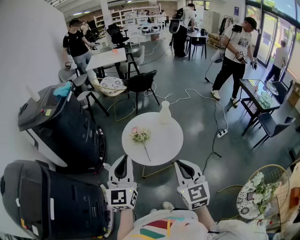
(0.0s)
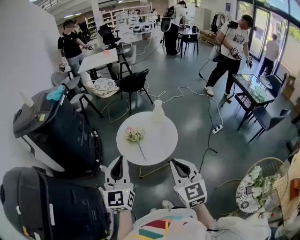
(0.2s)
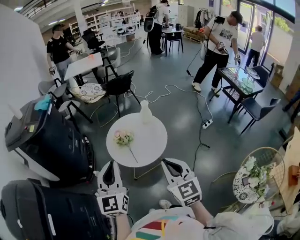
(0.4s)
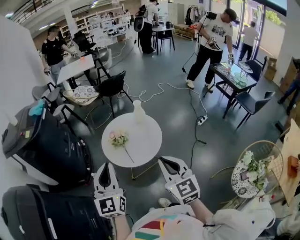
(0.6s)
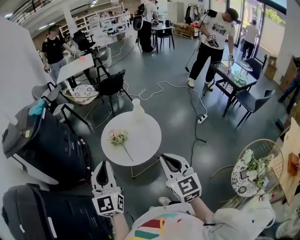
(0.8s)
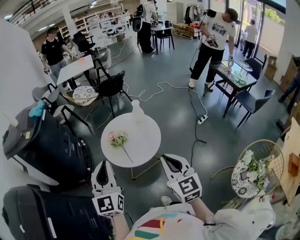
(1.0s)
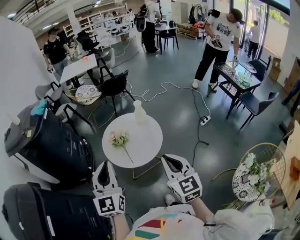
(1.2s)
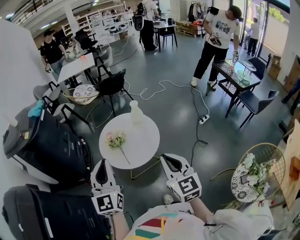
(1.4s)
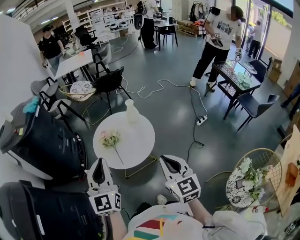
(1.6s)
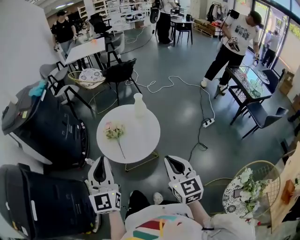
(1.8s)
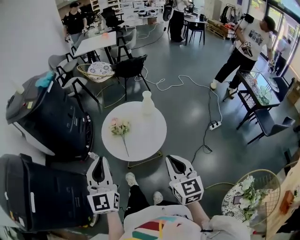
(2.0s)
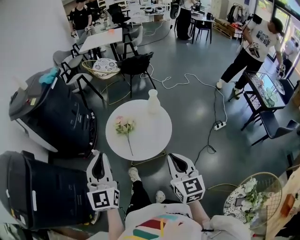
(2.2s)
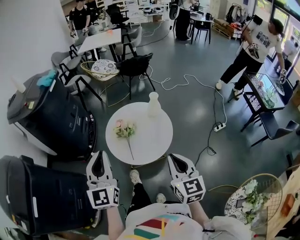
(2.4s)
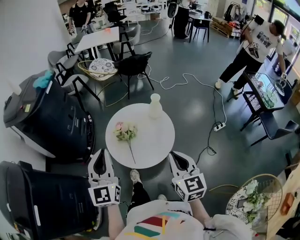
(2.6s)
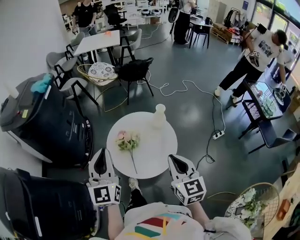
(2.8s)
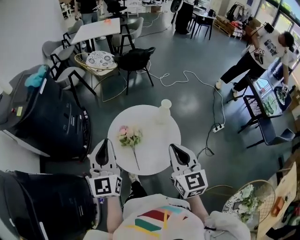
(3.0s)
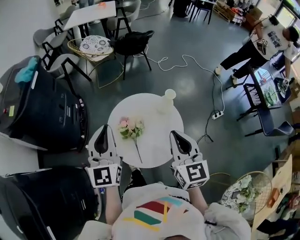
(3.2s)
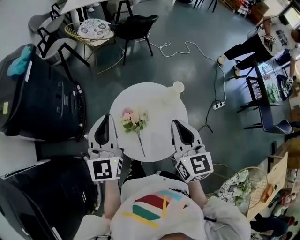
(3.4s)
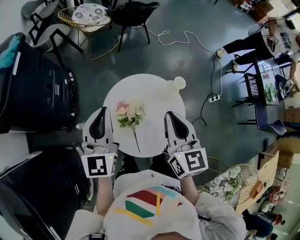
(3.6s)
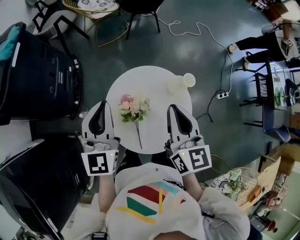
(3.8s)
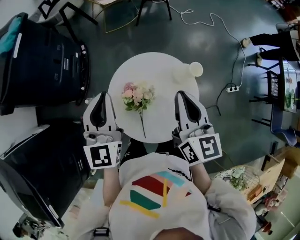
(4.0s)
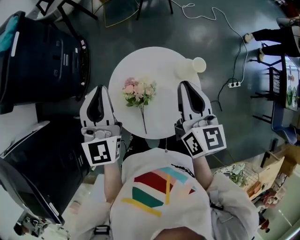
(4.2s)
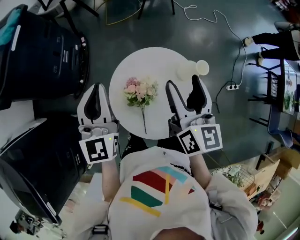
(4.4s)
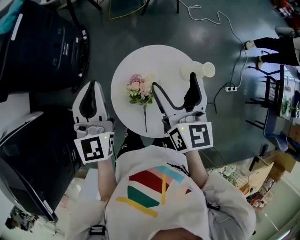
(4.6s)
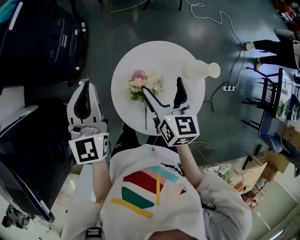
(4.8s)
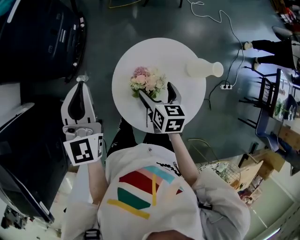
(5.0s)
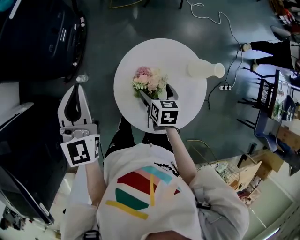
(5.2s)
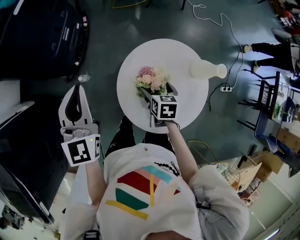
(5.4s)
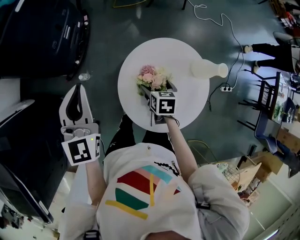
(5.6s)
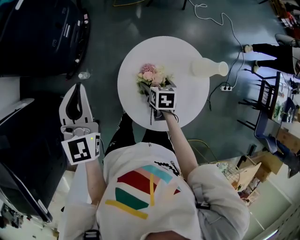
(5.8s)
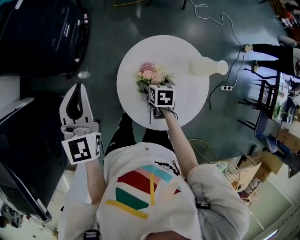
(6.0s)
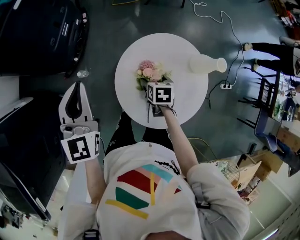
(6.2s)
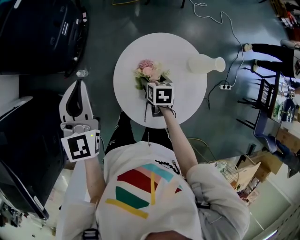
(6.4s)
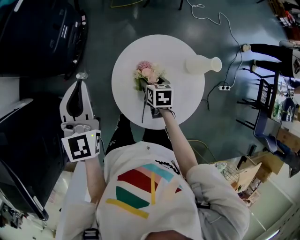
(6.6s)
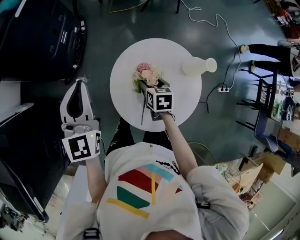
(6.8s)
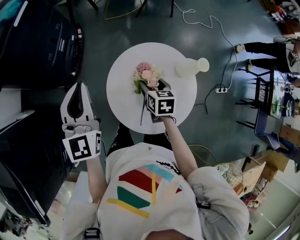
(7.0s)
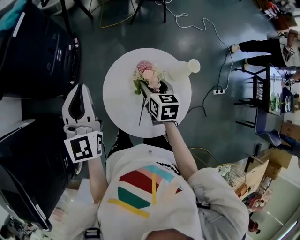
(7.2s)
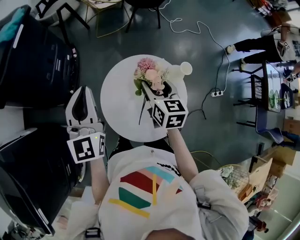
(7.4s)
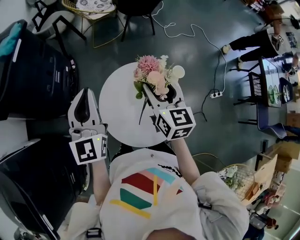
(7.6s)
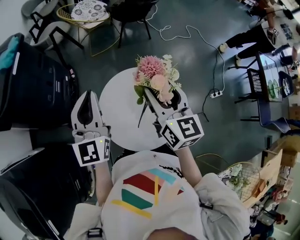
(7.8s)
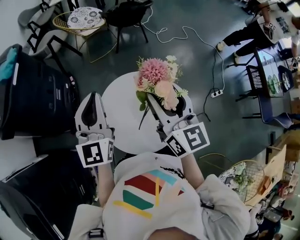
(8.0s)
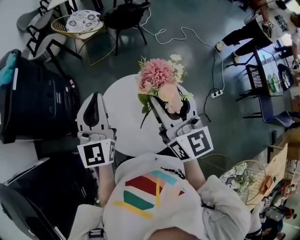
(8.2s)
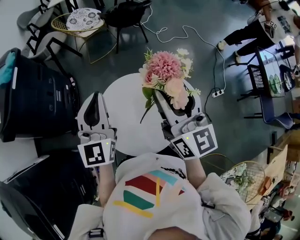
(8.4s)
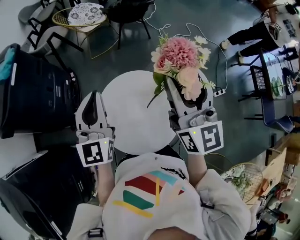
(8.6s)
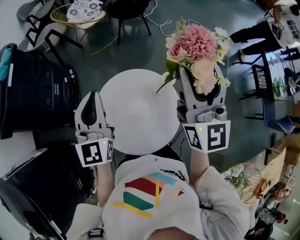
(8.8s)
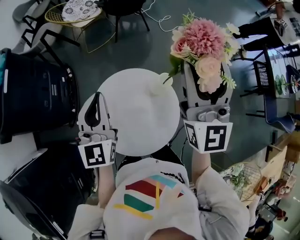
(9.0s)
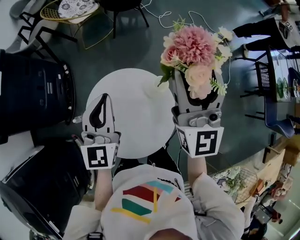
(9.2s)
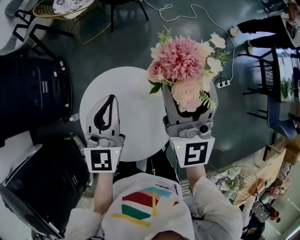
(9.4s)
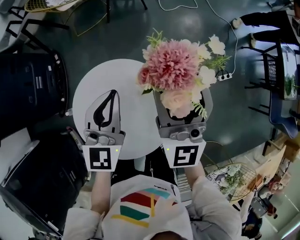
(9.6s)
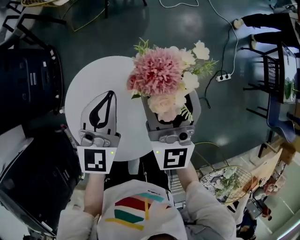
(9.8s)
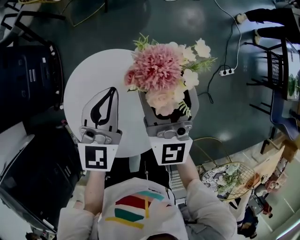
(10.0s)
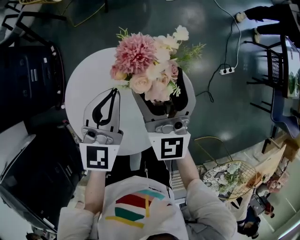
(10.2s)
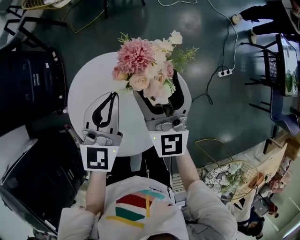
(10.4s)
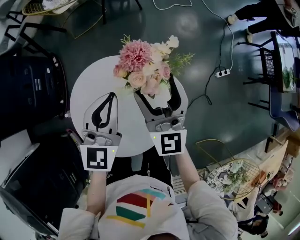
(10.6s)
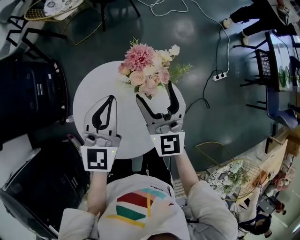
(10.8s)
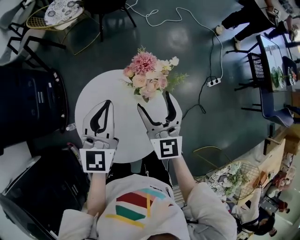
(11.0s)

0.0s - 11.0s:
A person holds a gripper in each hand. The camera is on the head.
0.0s - 1.6s: The grippers both shift to the right by approximately 10 cm.
1.6s - 3.2s: Both grippers move forward, roughly 30 cm.
3.2s - 4.8s: The left gripper goes roughly 15 cm to the left, downward and forward. Meanwhile the right gripper is displaced forward, downward and to the left by roughly 25 cm, turns by approximately 20 degrees, and opens its fingers.
4.8s - 6.2s: The right gripper heads downward, covering approximately 20 cm, and tips its fingers downward by approximately 40 degrees. Meanwhile the left gripper goes approximately 5 cm to the left.
6.2s - 7.8s: The left gripper travels to the right and upward by about 20 cm. The right gripper is displaced upward by roughly 35 cm, and tilts its fingers about 60 degrees upward.
7.8s - 9.4s: The right gripper moves to the right and forward, approximately 15 cm, and swivels roughly 30 degrees. The left gripper goes some 20 cm to the right, downward and forward.
9.4s - 11.0s: The right gripper shifts approximately 15 cm downward and backward, and rotates some 20 degrees.

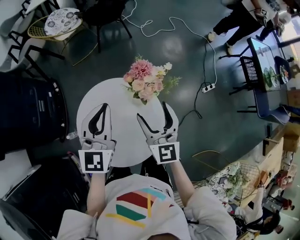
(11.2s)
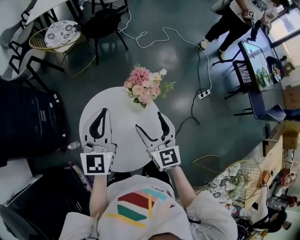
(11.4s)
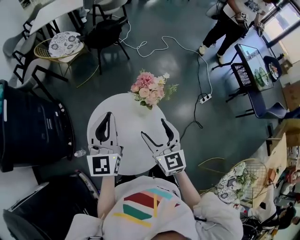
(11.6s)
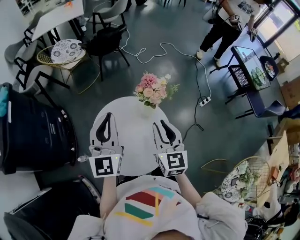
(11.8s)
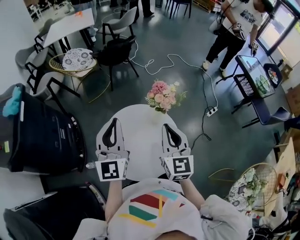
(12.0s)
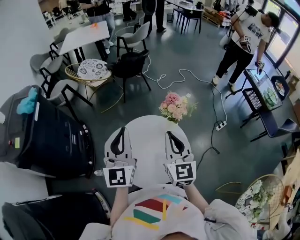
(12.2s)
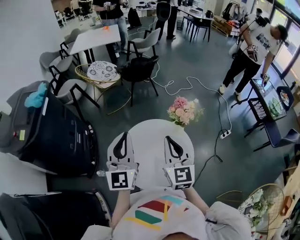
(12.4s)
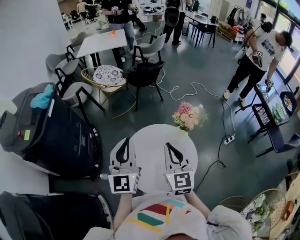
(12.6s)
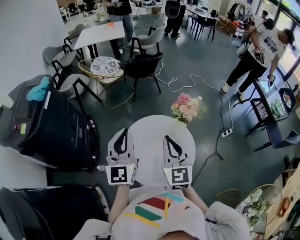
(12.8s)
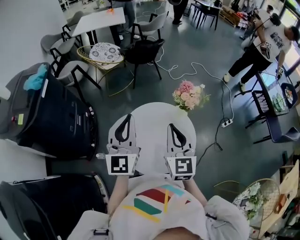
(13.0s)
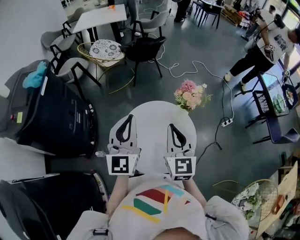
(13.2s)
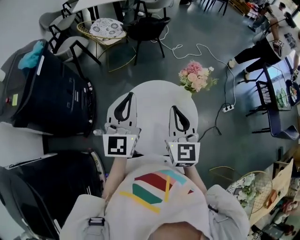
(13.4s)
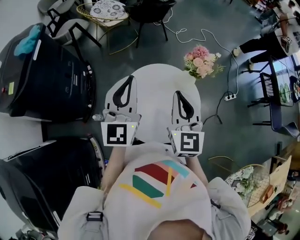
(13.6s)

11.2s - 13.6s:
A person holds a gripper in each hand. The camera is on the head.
11.2s - 12.4s: The left gripper is displaced to the left, backward and upward by roughly 15 cm; the right gripper heads to the left, upward and backward, covering about 15 cm, and closes.
12.4s - 13.6s: The grippers move only a little.

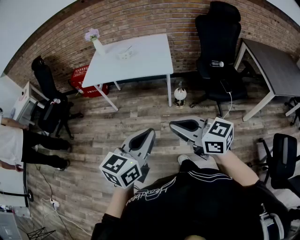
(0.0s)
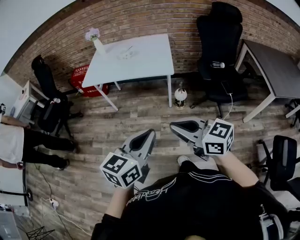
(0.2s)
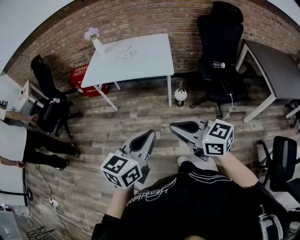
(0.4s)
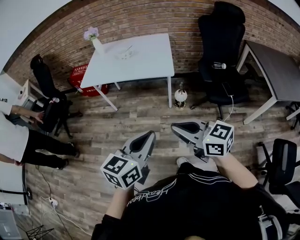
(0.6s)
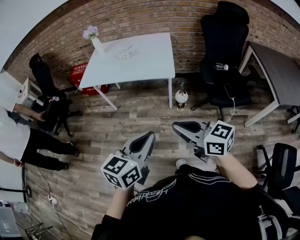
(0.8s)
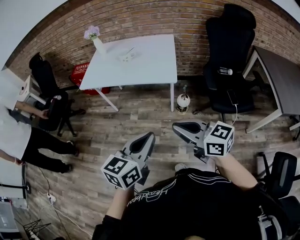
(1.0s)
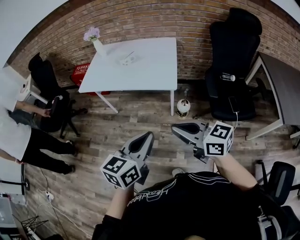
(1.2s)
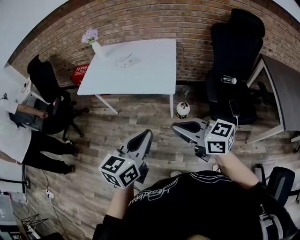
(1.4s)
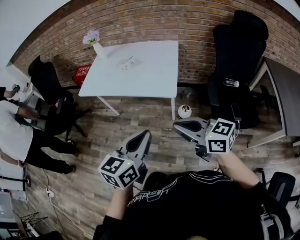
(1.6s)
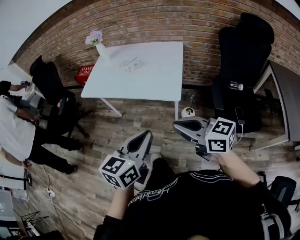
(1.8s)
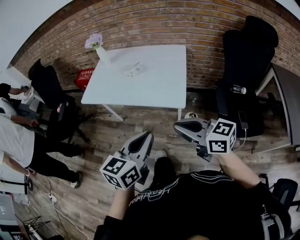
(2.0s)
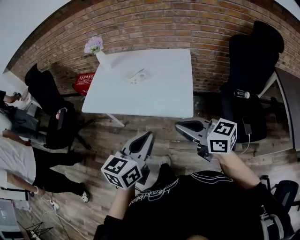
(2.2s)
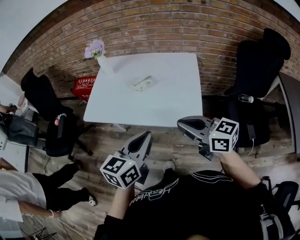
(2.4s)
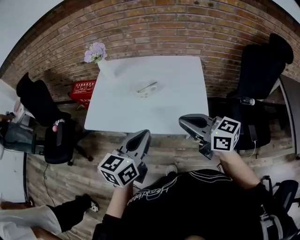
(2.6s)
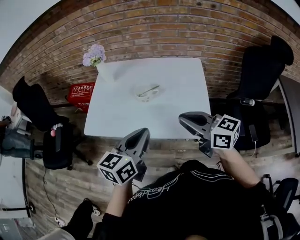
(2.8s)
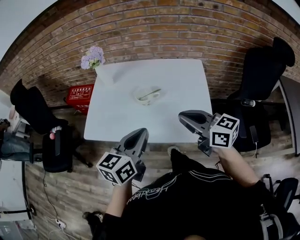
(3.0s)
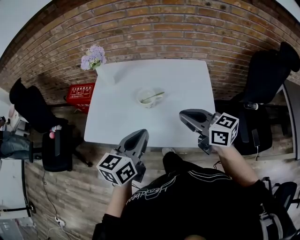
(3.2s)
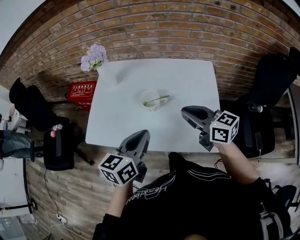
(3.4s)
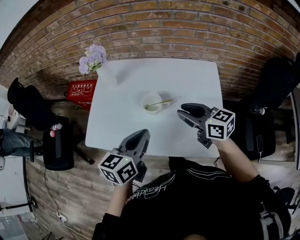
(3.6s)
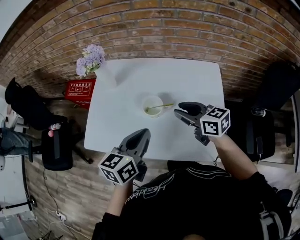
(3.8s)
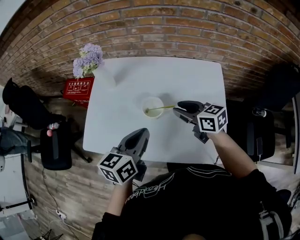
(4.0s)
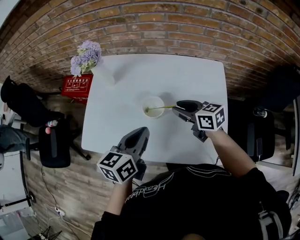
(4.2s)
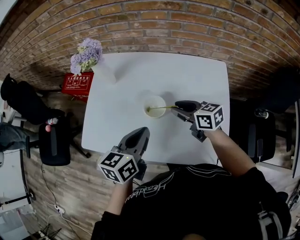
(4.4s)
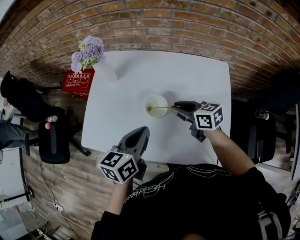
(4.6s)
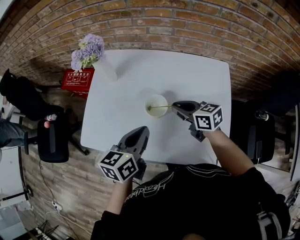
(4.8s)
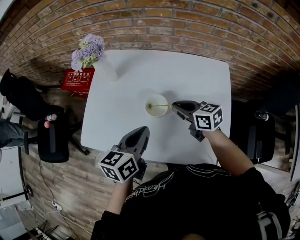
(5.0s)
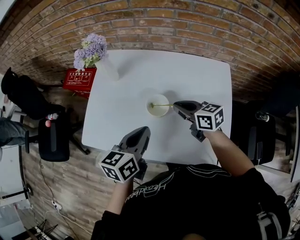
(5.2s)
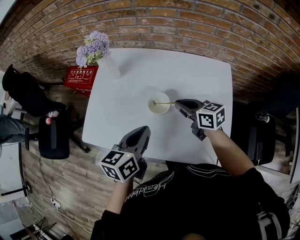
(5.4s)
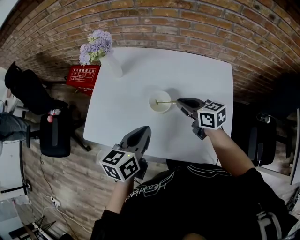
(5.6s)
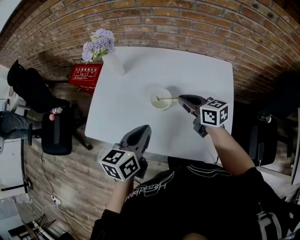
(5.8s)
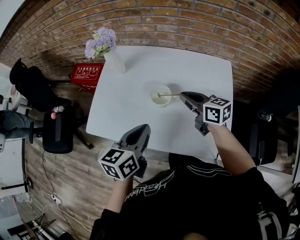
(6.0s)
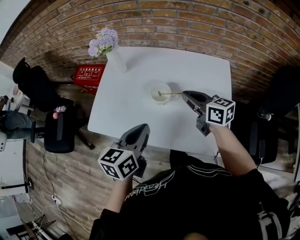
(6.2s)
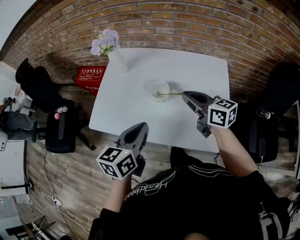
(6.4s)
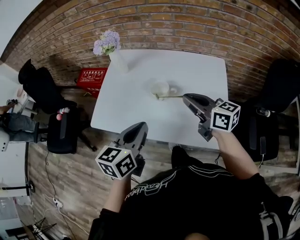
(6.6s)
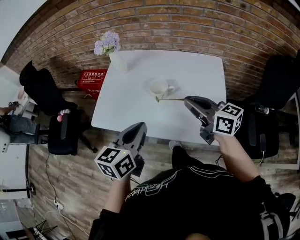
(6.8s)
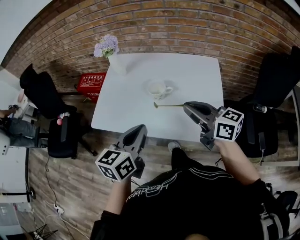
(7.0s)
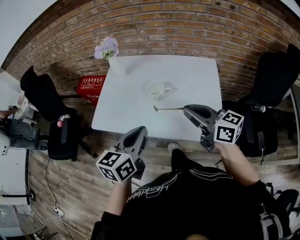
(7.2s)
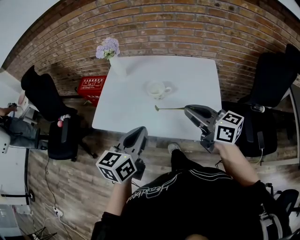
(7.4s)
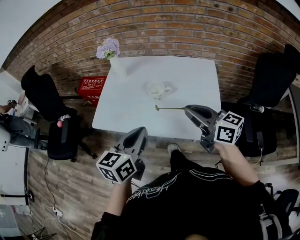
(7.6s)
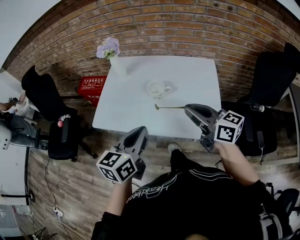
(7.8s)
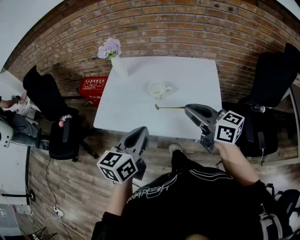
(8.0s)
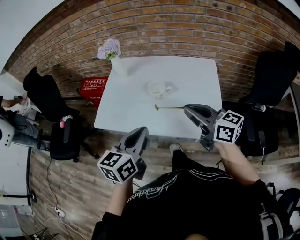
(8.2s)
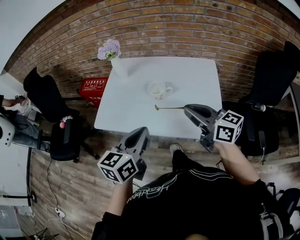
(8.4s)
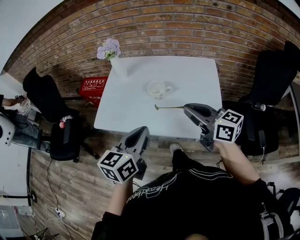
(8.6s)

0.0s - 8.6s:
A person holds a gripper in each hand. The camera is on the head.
0.0s - 1.4s: Both grippers move forward and to the right, about 20 cm.
1.4s - 2.8s: The pair of grippers is taken forward, some 40 cm.
2.8s - 4.4s: The grippers both shift forward and downward by approximately 25 cm. The right gripper rotates about 20 degrees, and opens its fingers.
4.4s - 5.8s: The right gripper closes up.
5.8s - 7.2s: The right gripper goes roughly 25 cm backward and upward; the left gripper heads backward and upward, covering roughly 15 cm.
7.2s - 8.6s: There are only small adjustments of the grippers.
